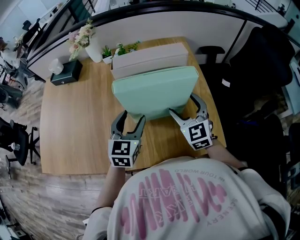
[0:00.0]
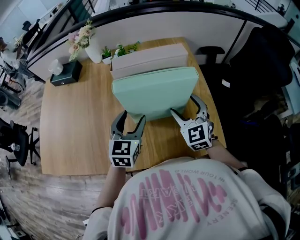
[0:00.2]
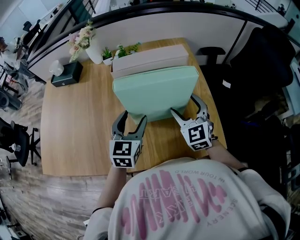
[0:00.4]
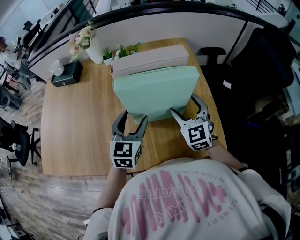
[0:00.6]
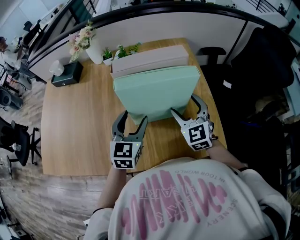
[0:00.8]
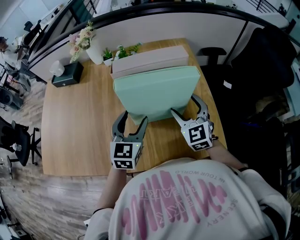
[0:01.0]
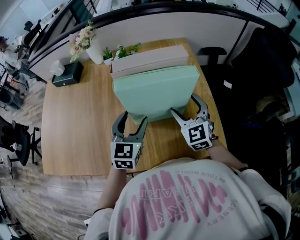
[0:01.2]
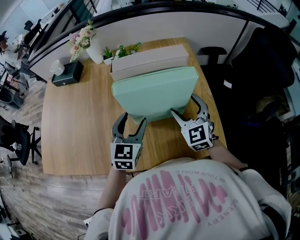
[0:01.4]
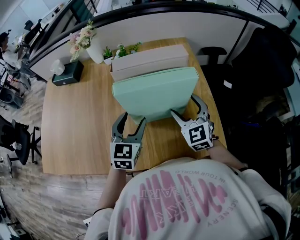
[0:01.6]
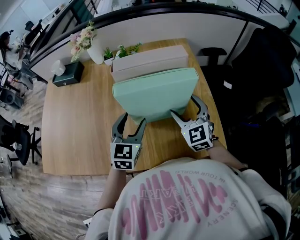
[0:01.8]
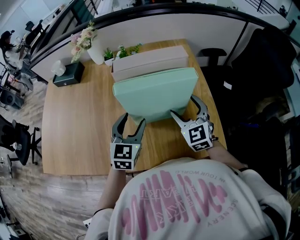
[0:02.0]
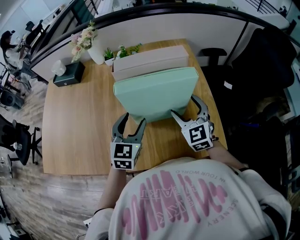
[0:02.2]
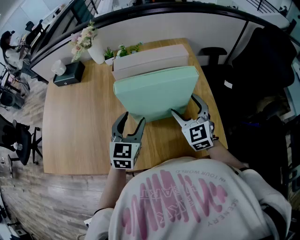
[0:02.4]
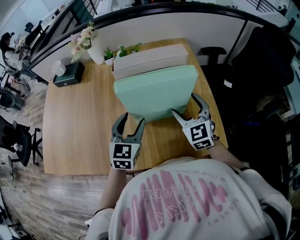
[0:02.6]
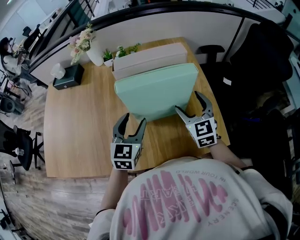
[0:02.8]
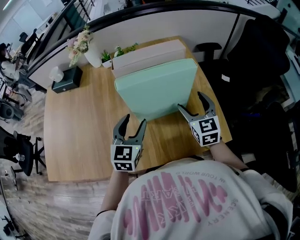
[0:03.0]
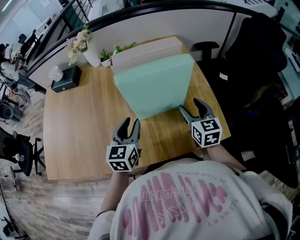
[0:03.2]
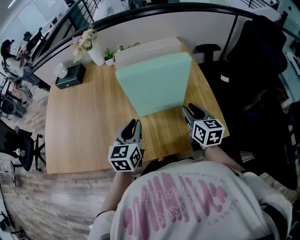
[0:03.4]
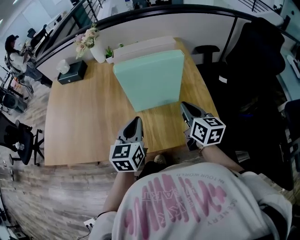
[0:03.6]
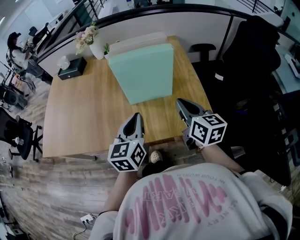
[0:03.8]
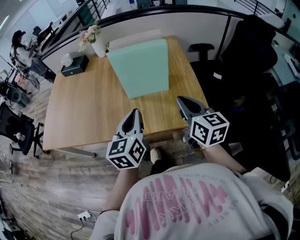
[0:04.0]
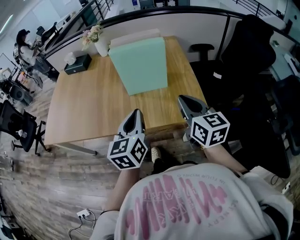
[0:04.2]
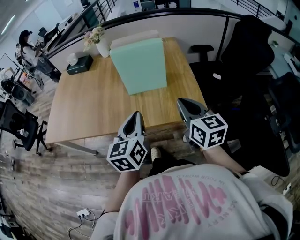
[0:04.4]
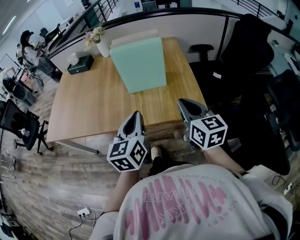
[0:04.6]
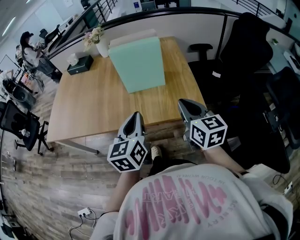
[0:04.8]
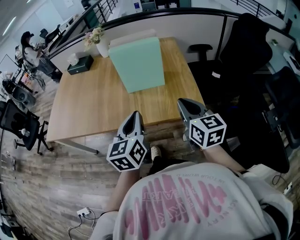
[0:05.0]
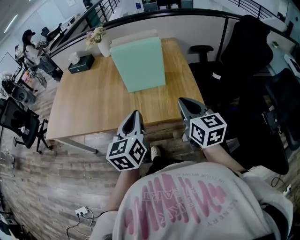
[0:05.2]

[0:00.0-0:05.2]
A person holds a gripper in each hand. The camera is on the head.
0.0 to 1.8 s: Both grippers stay put.
1.8 to 3.4 s: Both grippers move backward, about 5 cm. The right gripper rolls clockwise, seen from behind, by approximately 40 degrees, and closes up. The left gripper closes.
3.4 to 5.2 s: Both grippers travel together backward and upward, some 25 cm.

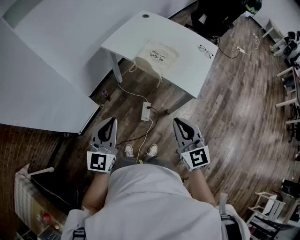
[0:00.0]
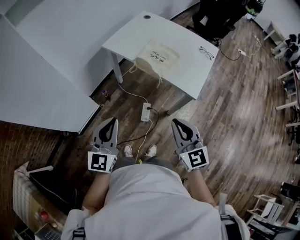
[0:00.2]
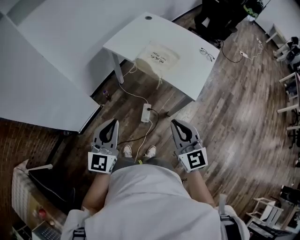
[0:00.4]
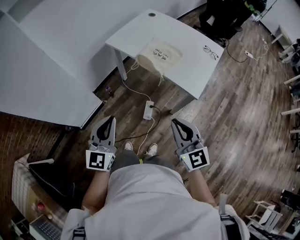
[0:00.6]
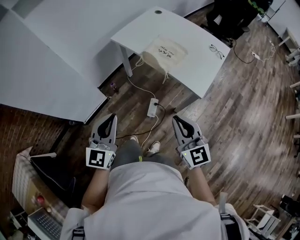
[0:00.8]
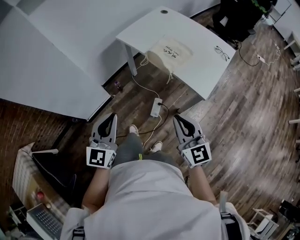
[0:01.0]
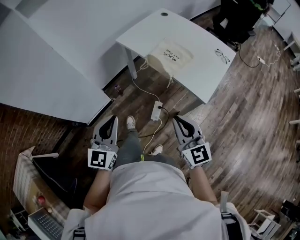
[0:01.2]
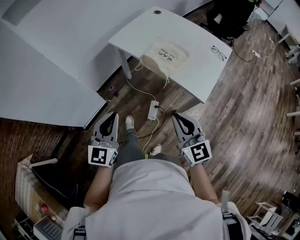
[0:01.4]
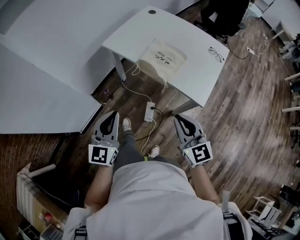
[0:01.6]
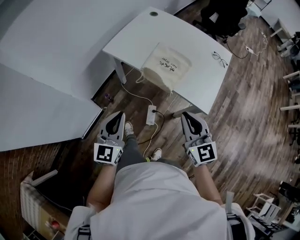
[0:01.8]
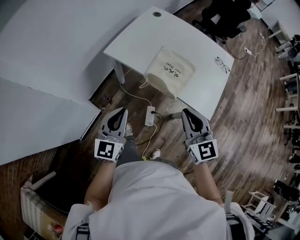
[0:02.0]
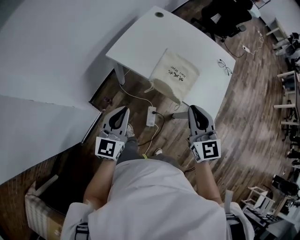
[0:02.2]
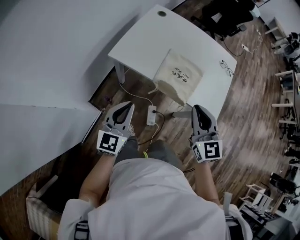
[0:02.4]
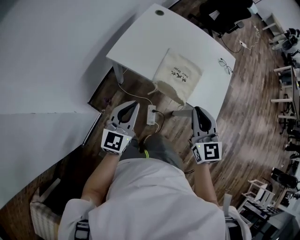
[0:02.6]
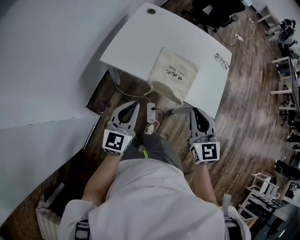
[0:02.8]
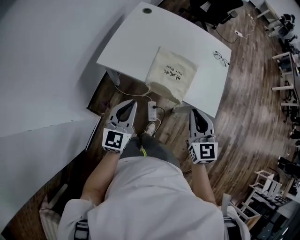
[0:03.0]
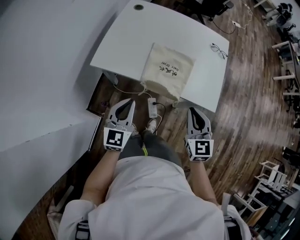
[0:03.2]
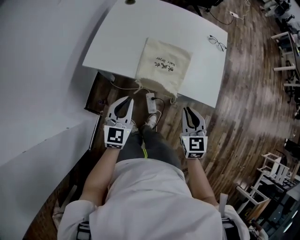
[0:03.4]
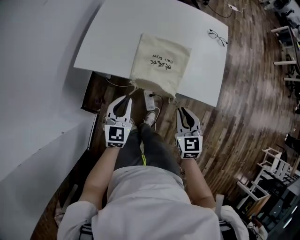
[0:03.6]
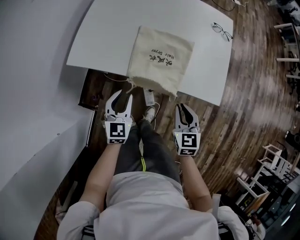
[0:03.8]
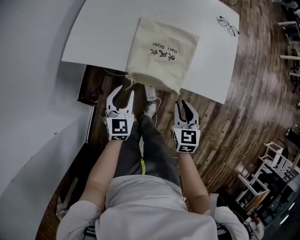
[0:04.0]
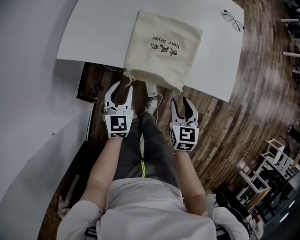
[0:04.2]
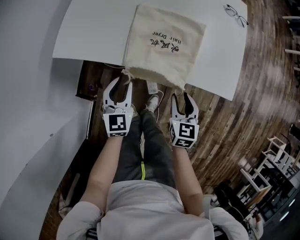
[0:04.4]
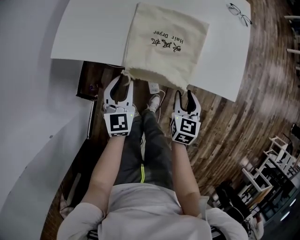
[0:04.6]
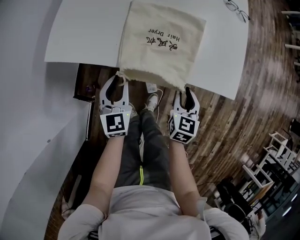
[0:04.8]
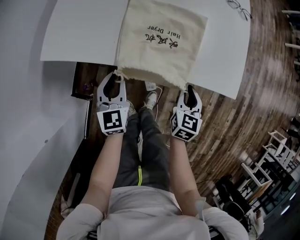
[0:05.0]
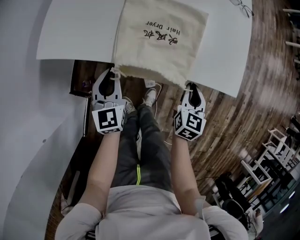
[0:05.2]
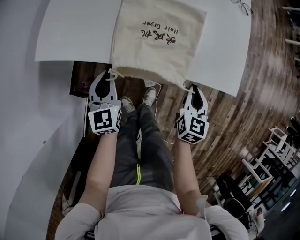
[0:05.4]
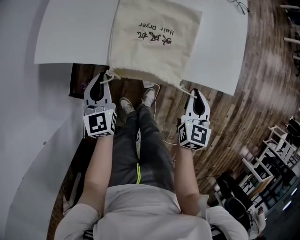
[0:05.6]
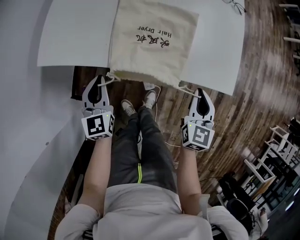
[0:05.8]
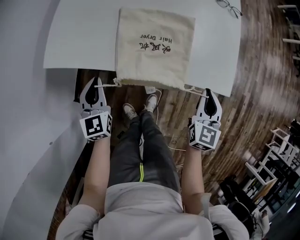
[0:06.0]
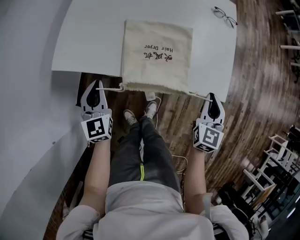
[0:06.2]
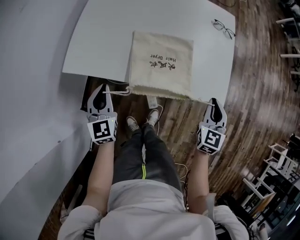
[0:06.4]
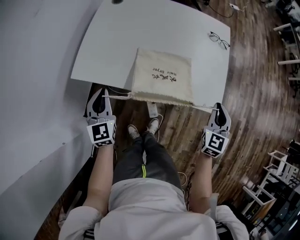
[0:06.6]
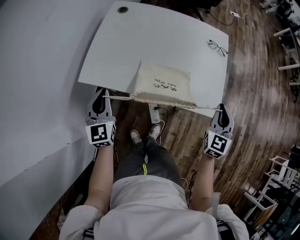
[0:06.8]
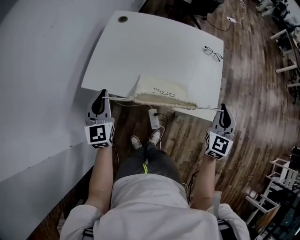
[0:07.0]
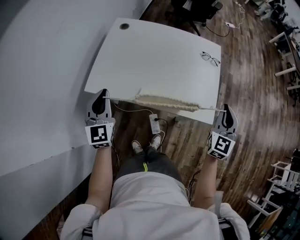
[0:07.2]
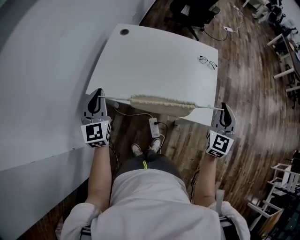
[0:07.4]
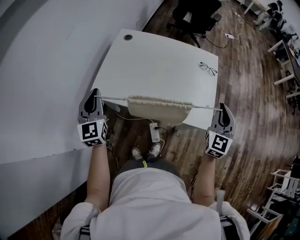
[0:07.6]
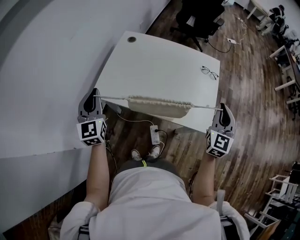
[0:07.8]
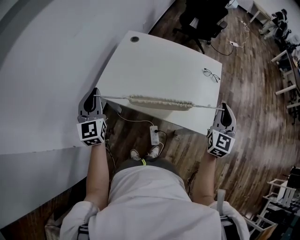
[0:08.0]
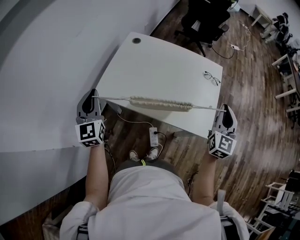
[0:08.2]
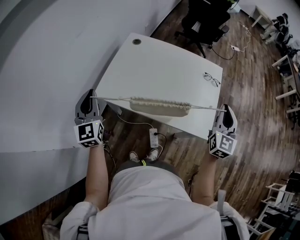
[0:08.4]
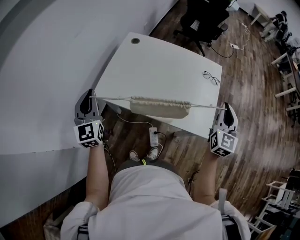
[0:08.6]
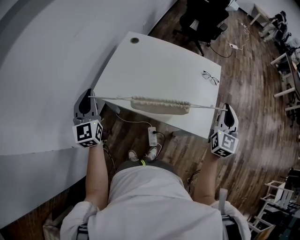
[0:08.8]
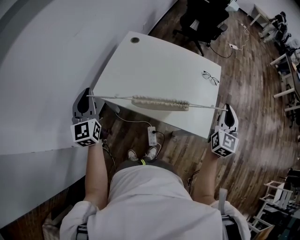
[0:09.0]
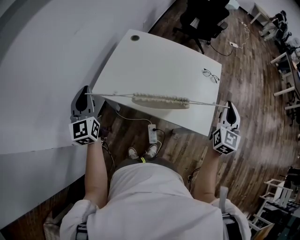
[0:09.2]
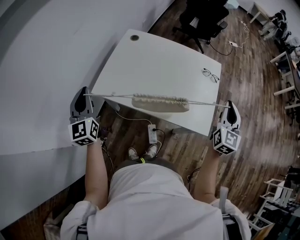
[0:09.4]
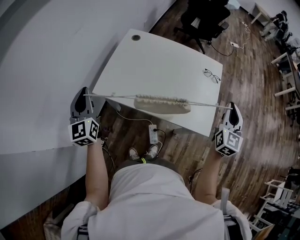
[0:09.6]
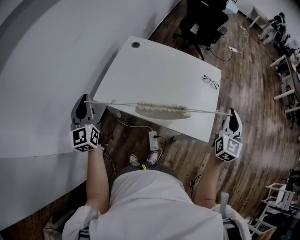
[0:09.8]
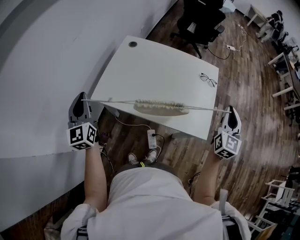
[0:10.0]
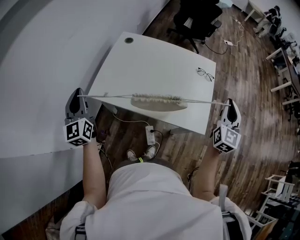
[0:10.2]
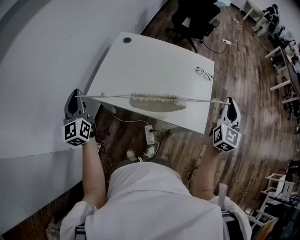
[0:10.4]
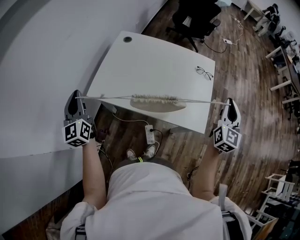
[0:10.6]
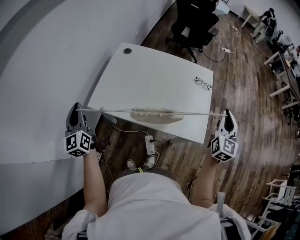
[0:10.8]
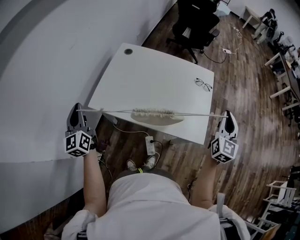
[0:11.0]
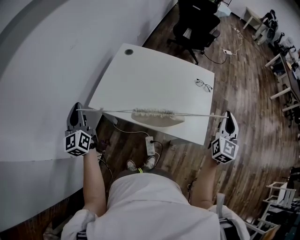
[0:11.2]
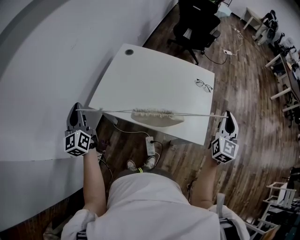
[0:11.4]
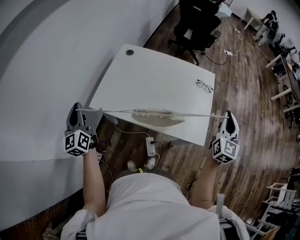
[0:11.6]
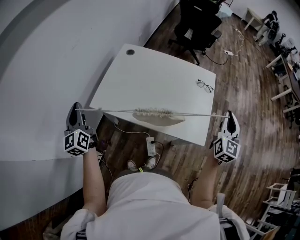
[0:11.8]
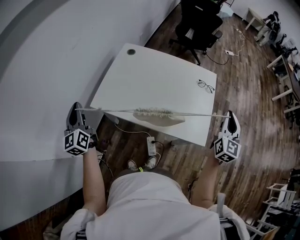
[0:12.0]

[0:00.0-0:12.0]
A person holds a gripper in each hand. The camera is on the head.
0.0 to 1.6 s: The right gripper is displaced forward and downward by some 10 cm, while the left gripper is displaced forward by roughly 10 cm.
1.6 to 3.0 s: The right gripper heads forward and to the left, covering about 20 cm, and turns by some 30 degrees. Meanwhile the left gripper goes some 25 cm forward, and swivels about 20 degrees.
3.0 to 4.4 s: The left gripper is displaced downward and forward by approximately 25 cm, and opens its fingers; the right gripper goes about 30 cm downward, changes its angle by some 30 degrees, and opens.
4.4 to 6.0 s: The right gripper travels to the right, upward and forward by approximately 15 cm, and closes; the left gripper travels to the left by roughly 5 cm, and closes.
6.0 to 7.6 s: Both grippers travel together upward, about 30 cm. The right gripper rotates about 20 degrees.
7.6 to 9.0 s: The left gripper ends up about 5 cm from where it was.
9.0 to 12.0 s: The grippers make only small movements.

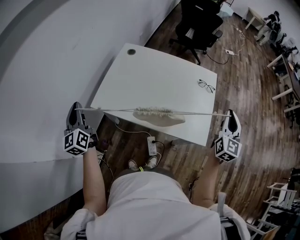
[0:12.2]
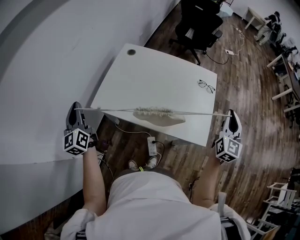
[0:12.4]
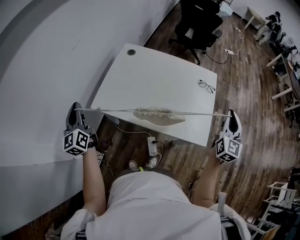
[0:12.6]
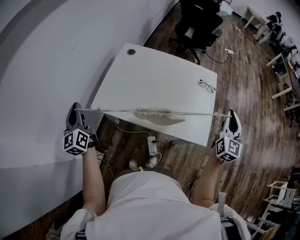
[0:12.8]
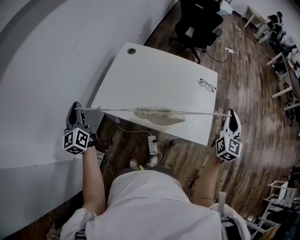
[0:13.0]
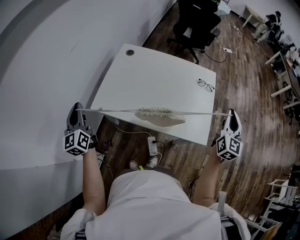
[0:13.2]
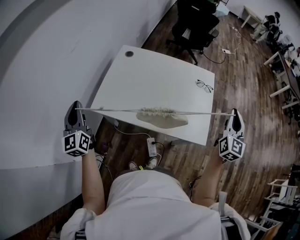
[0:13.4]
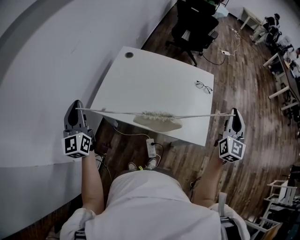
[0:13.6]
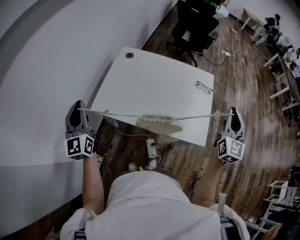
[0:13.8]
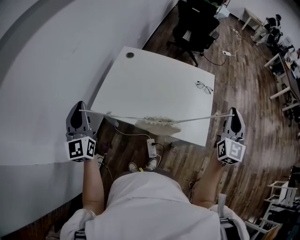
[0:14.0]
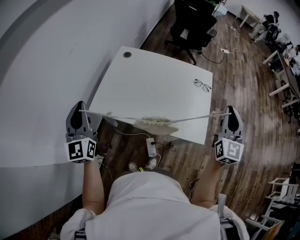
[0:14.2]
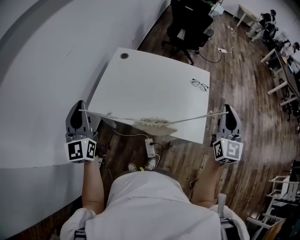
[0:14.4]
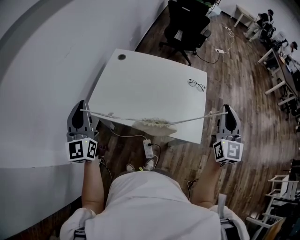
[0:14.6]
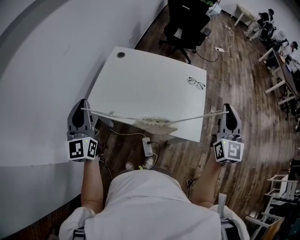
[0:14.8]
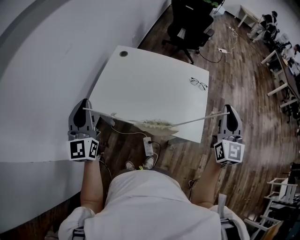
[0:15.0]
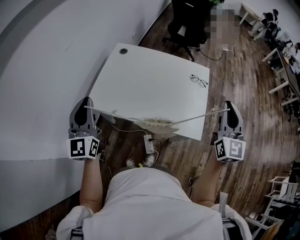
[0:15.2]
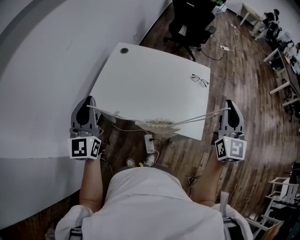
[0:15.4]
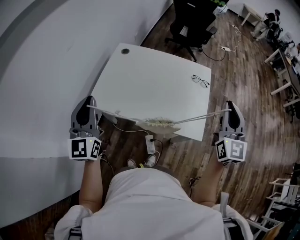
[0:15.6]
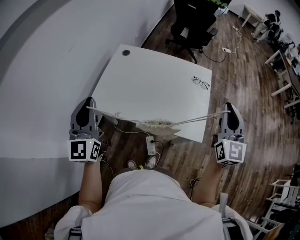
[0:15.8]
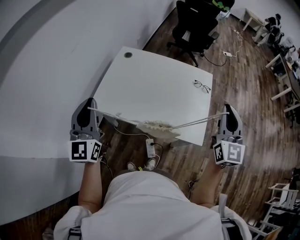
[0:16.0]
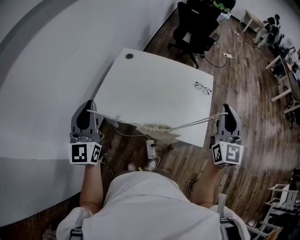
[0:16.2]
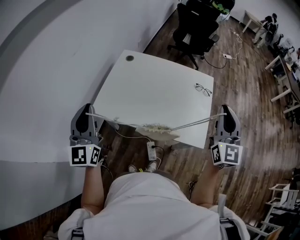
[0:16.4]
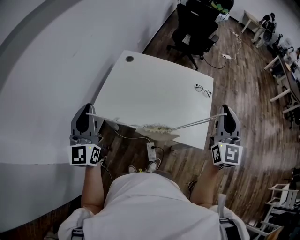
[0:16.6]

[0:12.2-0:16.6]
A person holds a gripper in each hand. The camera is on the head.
12.2 to 13.6 s: The left gripper shifts approximately 5 cm upward.
13.6 to 15.2 s: The left gripper heads to the right, covering some 10 cm. Meanwhile the right gripper changes place by about 5 cm.
15.2 to 16.6 s: The right gripper changes place by approximately 5 cm.

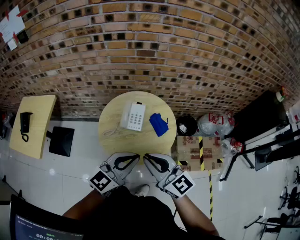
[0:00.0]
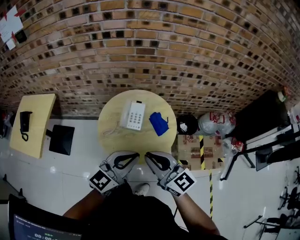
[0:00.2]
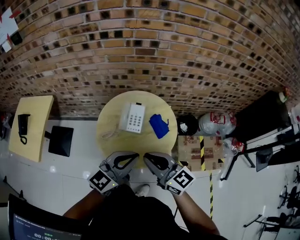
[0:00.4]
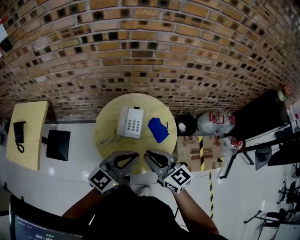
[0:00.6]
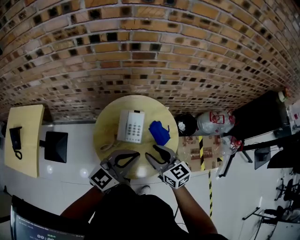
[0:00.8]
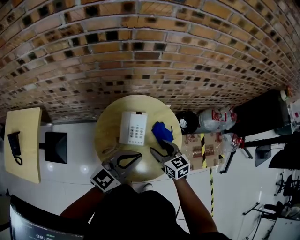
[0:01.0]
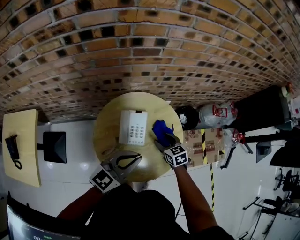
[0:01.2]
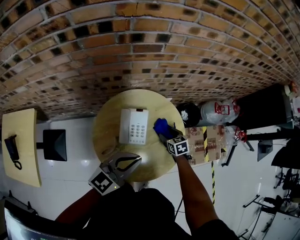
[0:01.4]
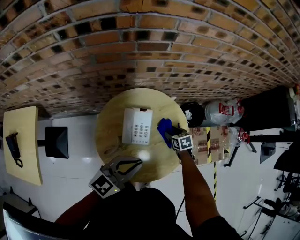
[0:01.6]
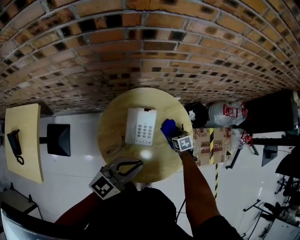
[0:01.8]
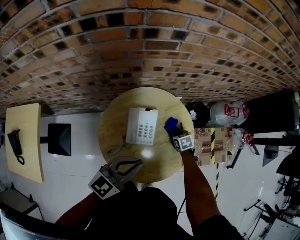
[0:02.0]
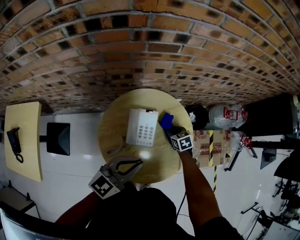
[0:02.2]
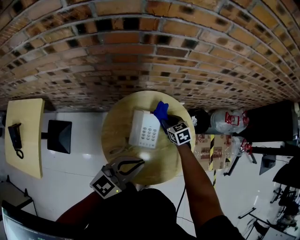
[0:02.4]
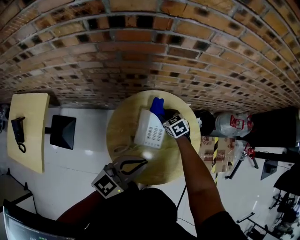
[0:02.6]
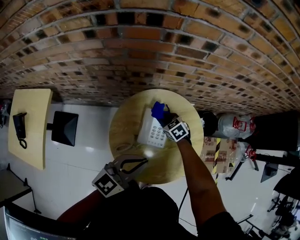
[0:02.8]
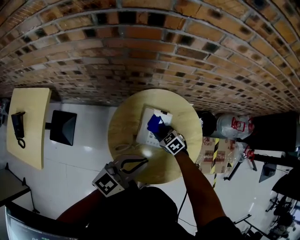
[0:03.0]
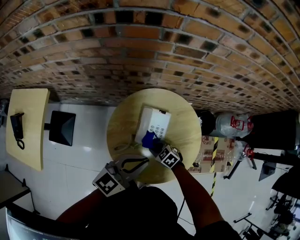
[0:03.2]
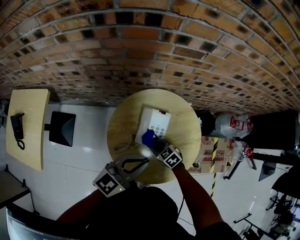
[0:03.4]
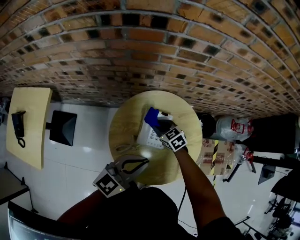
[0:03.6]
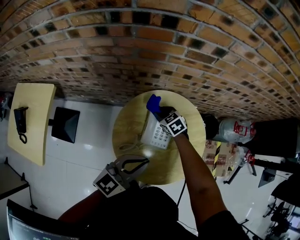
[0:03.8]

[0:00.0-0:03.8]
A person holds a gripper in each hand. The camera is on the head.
0.0 to 1.2 s: The right gripper heads downward and forward, covering approximately 40 cm, points its fingers approximately 40 degrees further downward, and opens its fingers. Meanwhile the left gripper shifts some 20 cm forward and downward.
1.2 to 2.6 s: The left gripper goes roughly 5 cm to the left; the right gripper shifts some 20 cm forward and to the left, turns by some 20 degrees, and closes up.
